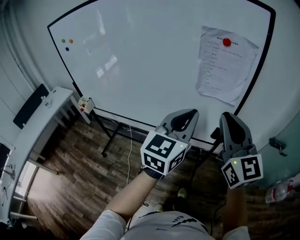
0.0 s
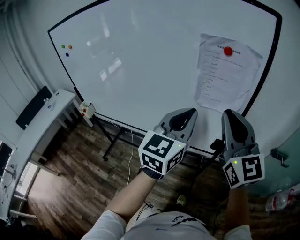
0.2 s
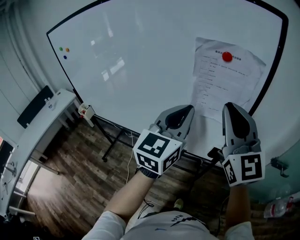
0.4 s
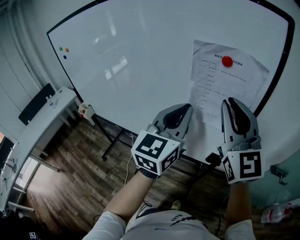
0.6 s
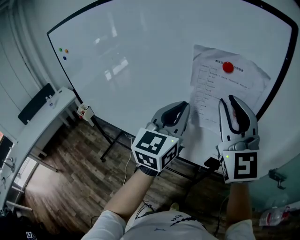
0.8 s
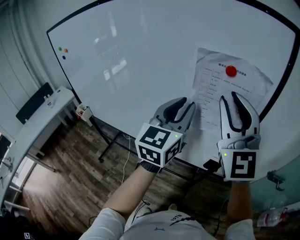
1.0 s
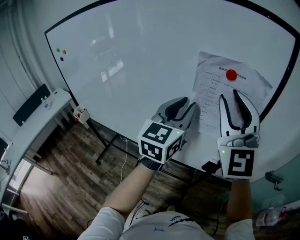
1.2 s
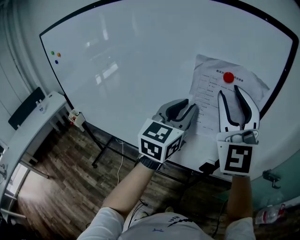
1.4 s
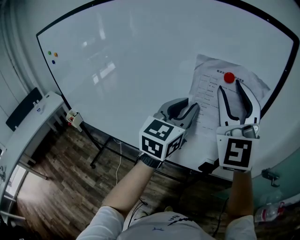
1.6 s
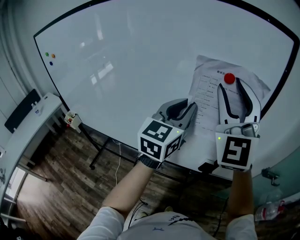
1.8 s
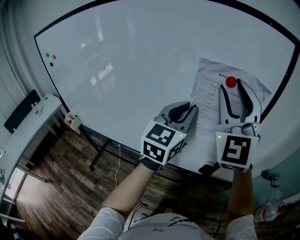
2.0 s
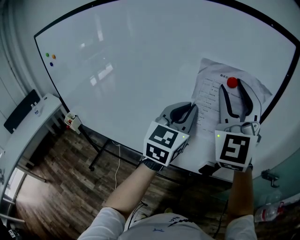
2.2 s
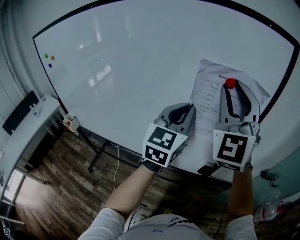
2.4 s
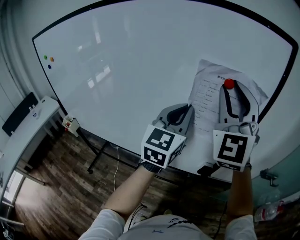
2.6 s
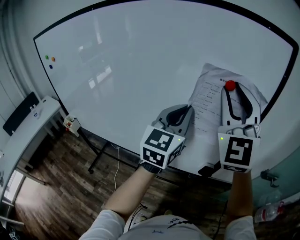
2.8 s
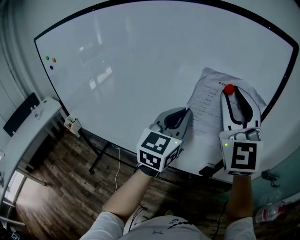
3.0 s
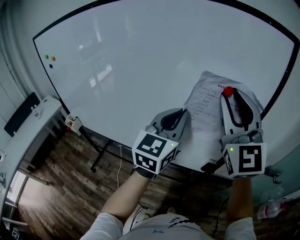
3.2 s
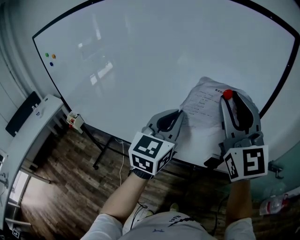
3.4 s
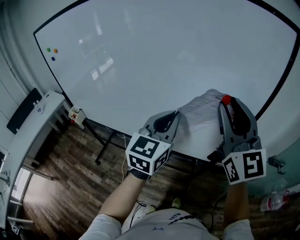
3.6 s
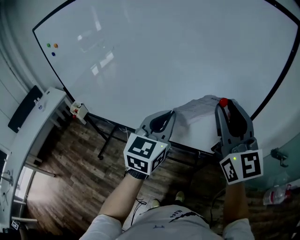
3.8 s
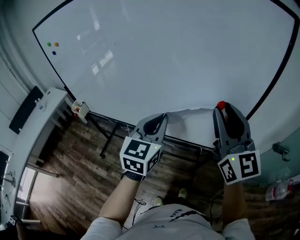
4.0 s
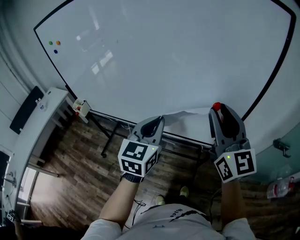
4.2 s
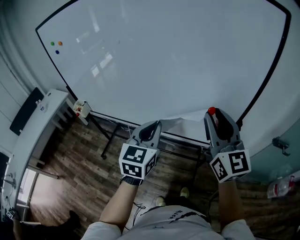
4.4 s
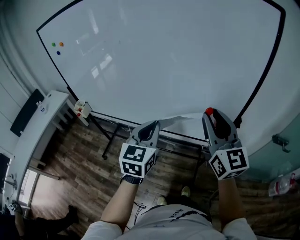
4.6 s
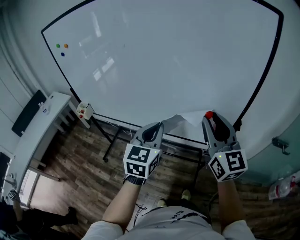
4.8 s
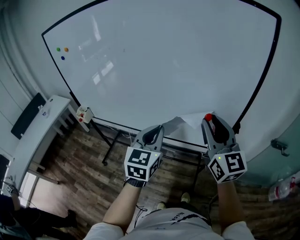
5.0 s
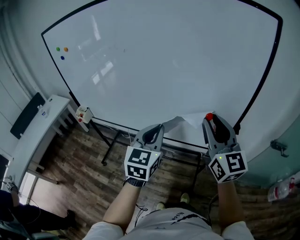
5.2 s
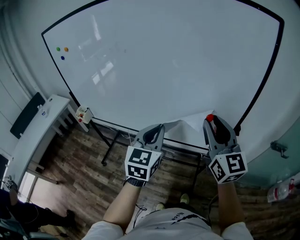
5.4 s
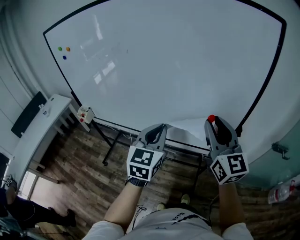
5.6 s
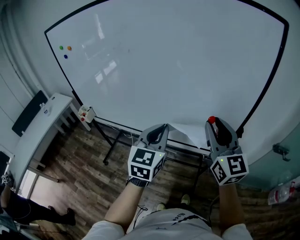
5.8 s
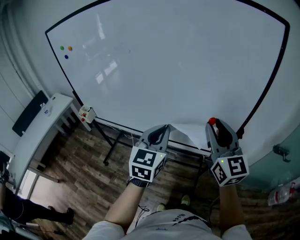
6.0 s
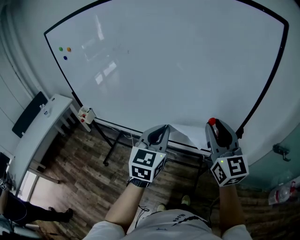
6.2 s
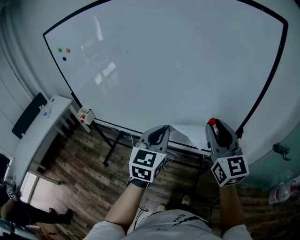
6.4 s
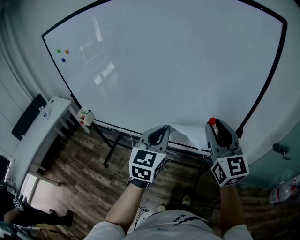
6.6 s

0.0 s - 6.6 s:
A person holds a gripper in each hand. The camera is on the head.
0.0 s - 1.6 s: The left gripper moves forward, approximately 20 cm, and opens its fingers. The right gripper is displaced forward and upward by about 20 cm, changes its angle by roughly 40 degrees, and opens.
1.6 s - 3.2 s: The left gripper shifts by about 5 cm, and closes.
3.2 s - 5.0 s: The left gripper moves to the left, backward and downward, some 20 cm. The right gripper goes about 15 cm downward and backward, and swivels roughly 30 degrees.
5.0 s - 6.6 s: The grippers stay close to where they were, moving slightly.

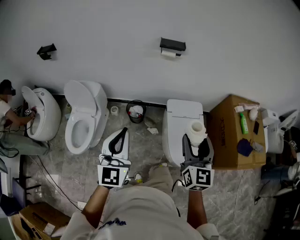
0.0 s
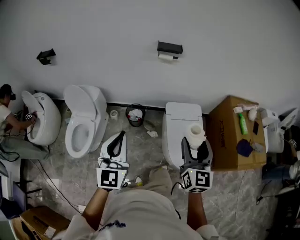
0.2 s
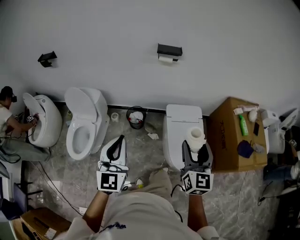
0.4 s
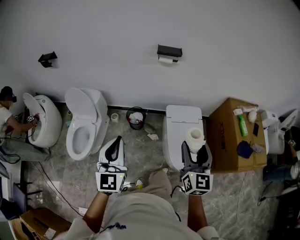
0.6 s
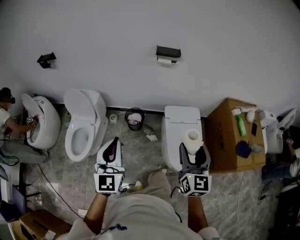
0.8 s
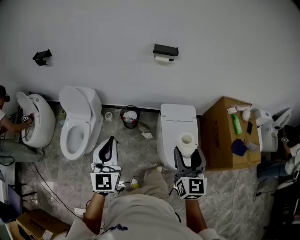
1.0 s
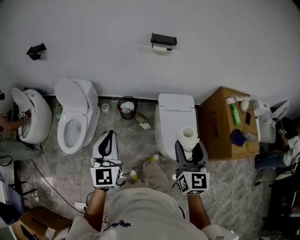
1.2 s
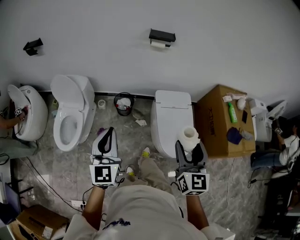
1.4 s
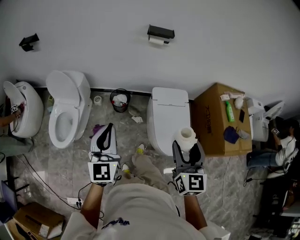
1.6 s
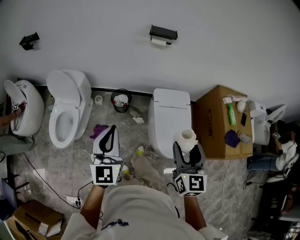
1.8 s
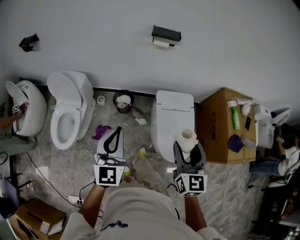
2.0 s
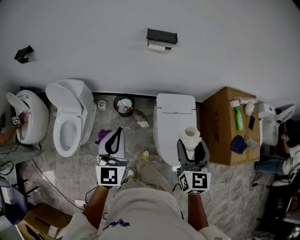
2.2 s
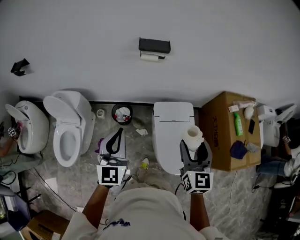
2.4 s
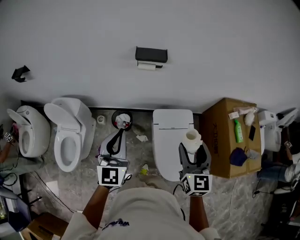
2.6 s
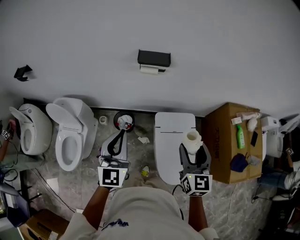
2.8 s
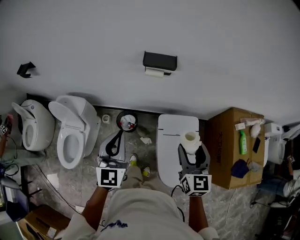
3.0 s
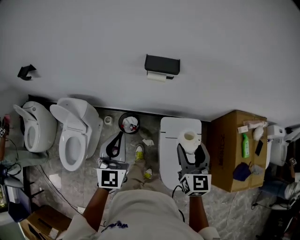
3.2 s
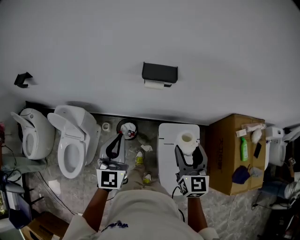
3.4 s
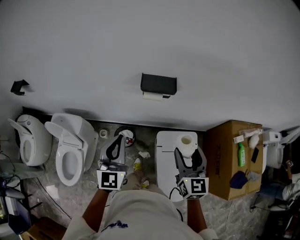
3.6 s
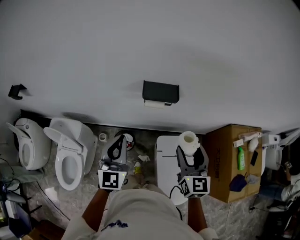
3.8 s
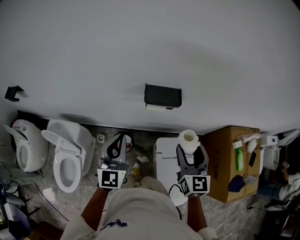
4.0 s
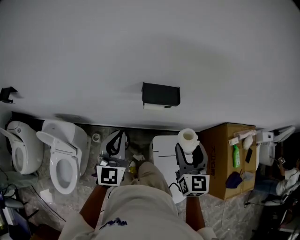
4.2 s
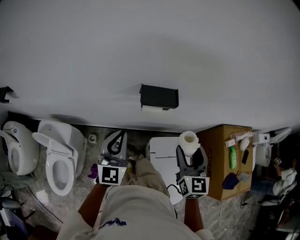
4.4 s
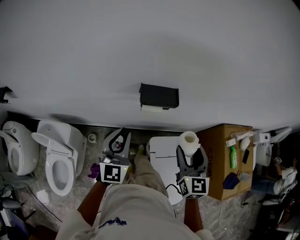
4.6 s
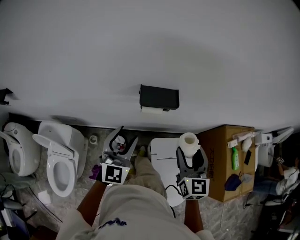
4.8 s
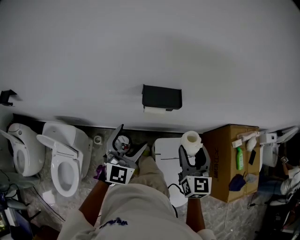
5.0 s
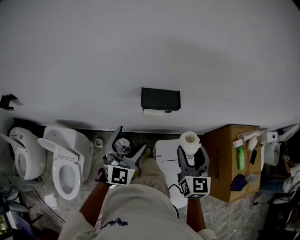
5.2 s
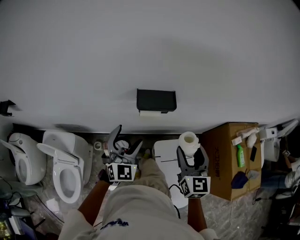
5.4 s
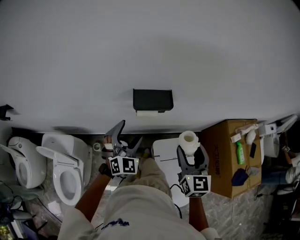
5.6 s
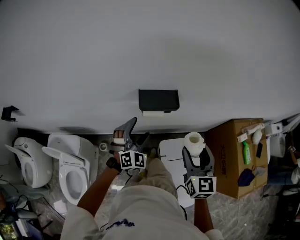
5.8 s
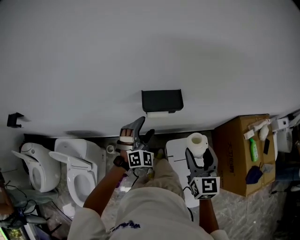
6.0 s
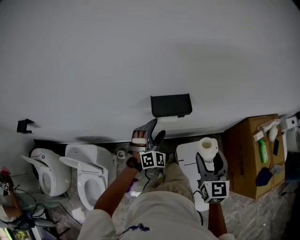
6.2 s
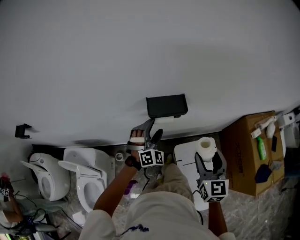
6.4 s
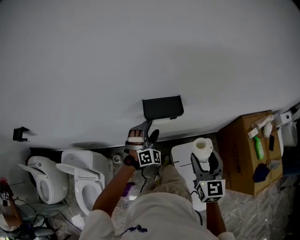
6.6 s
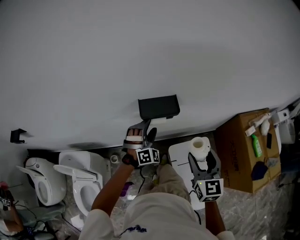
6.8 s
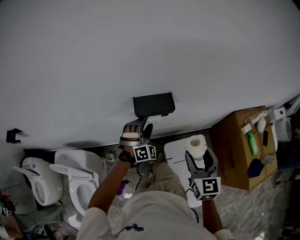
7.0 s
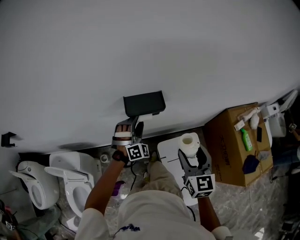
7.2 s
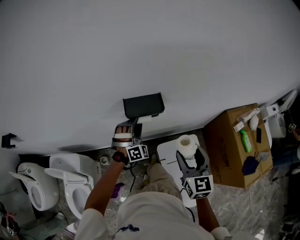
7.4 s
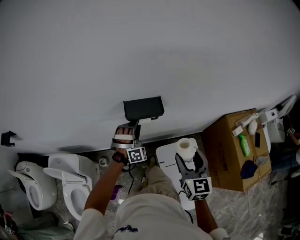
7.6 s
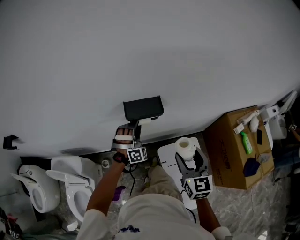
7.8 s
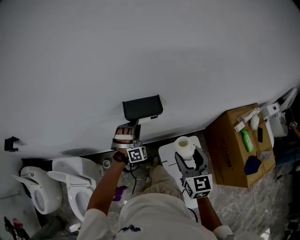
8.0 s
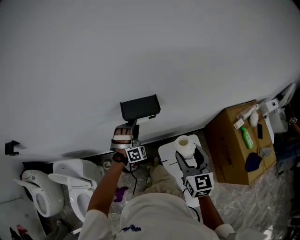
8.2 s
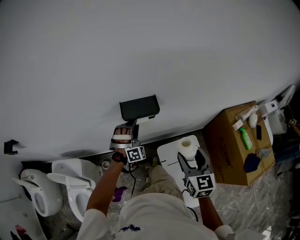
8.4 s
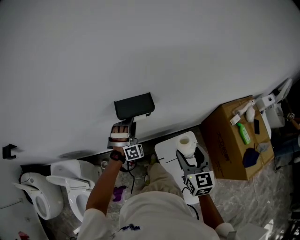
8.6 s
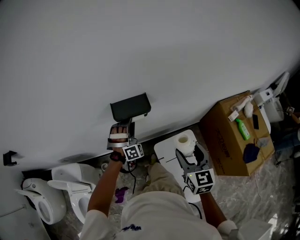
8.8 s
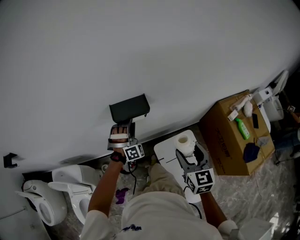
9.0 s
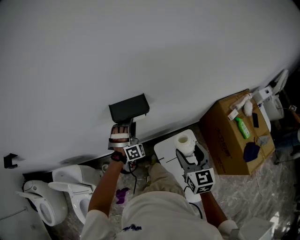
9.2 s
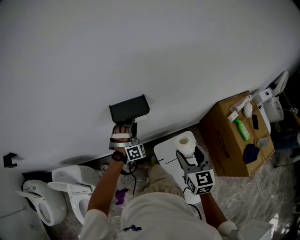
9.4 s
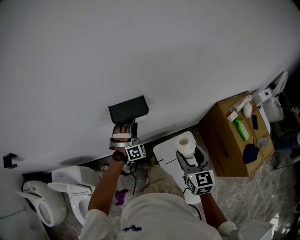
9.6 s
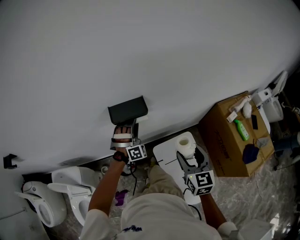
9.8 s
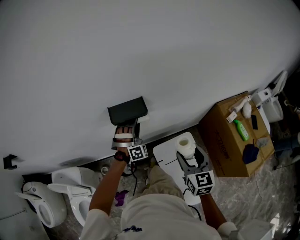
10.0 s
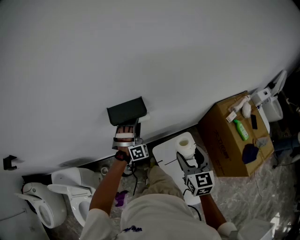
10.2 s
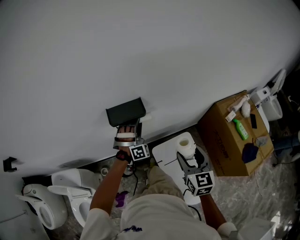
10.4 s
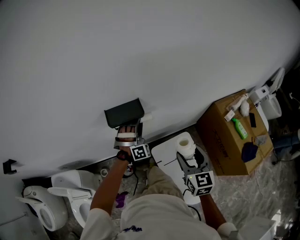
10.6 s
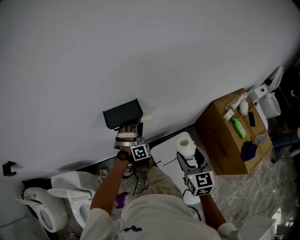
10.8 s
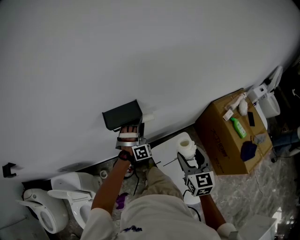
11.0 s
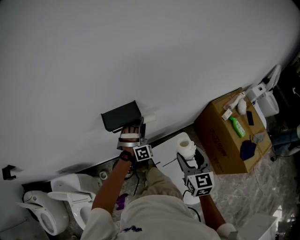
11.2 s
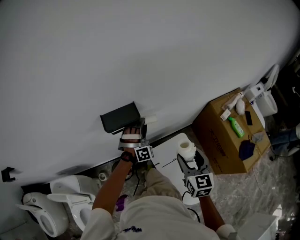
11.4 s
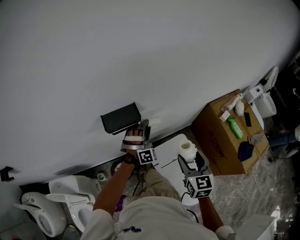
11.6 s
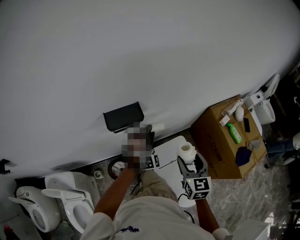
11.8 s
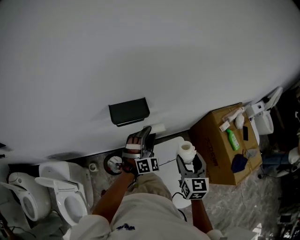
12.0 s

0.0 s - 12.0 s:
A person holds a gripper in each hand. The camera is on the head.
0.0 s - 1.6 s: The right gripper moves backward, approximately 5 cm; the left gripper goes about 5 cm downward.
1.6 s - 3.0 s: The two grippers go roughly 30 cm forward.
3.0 s - 4.4 s: The two grippers go approximately 20 cm forward.
4.4 s - 6.0 s: The left gripper is displaced downward, forward and to the right by approximately 15 cm, twists roughly 50 degrees clockwise, seen from behind, and opens up.
6.0 s - 7.6 s: The left gripper is displaced forward by approximately 5 cm, swivels some 30 degrees, and closes.
7.6 s - 9.0 s: The grippers stay close to where they were, moving slightly.
9.0 s - 10.4 s: The left gripper heads to the right, covering approximately 5 cm.
10.4 s - 12.0 s: The left gripper shifts roughly 10 cm backward and to the right, and changes its angle by roughly 30 degrees.

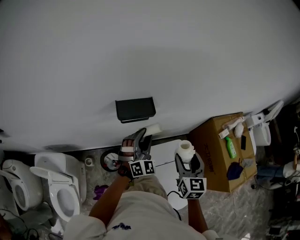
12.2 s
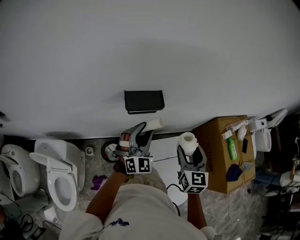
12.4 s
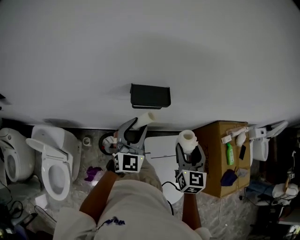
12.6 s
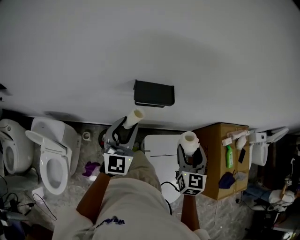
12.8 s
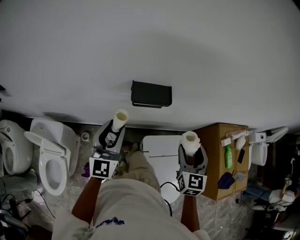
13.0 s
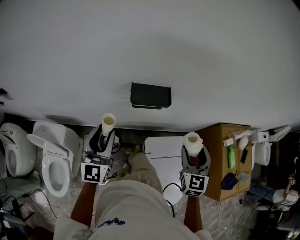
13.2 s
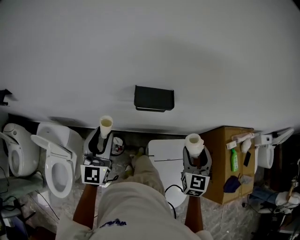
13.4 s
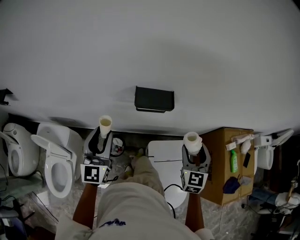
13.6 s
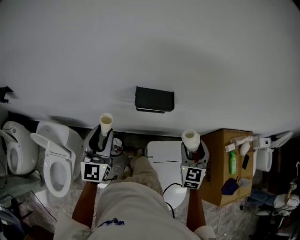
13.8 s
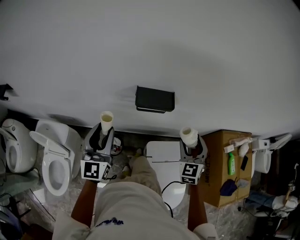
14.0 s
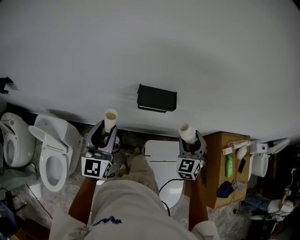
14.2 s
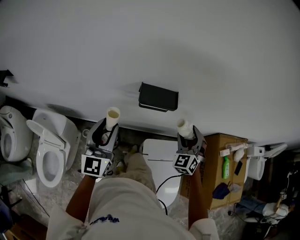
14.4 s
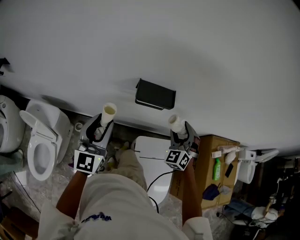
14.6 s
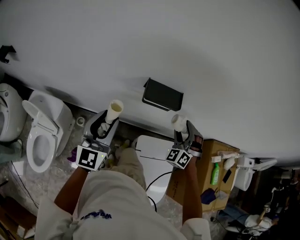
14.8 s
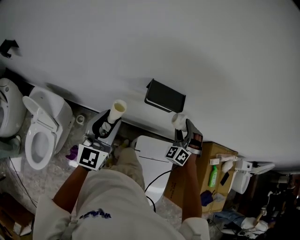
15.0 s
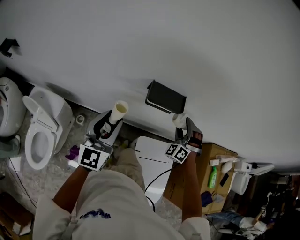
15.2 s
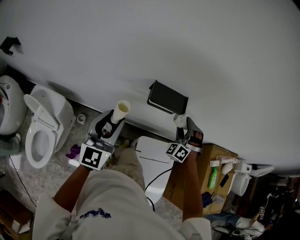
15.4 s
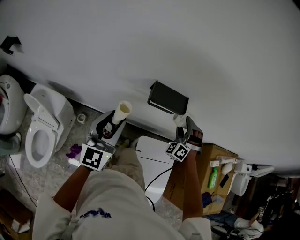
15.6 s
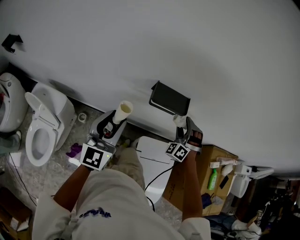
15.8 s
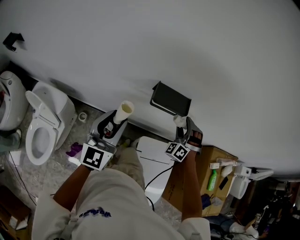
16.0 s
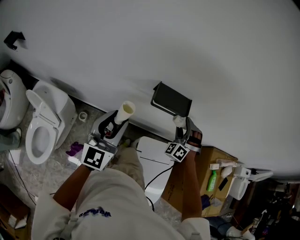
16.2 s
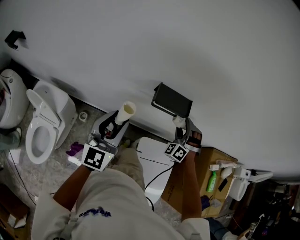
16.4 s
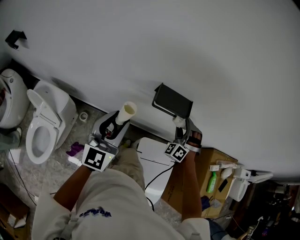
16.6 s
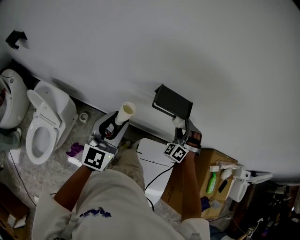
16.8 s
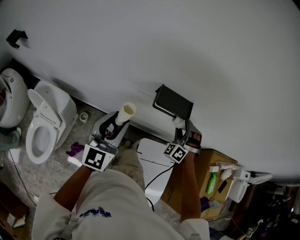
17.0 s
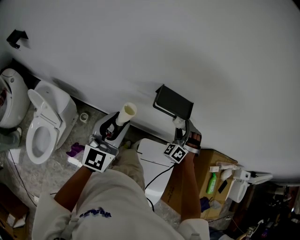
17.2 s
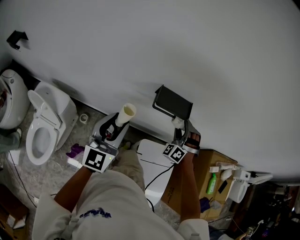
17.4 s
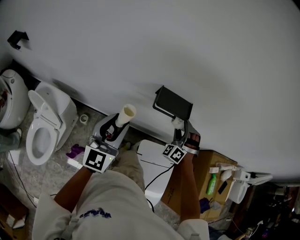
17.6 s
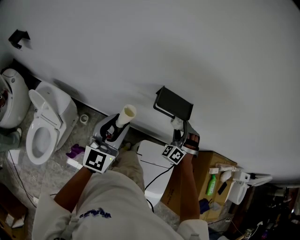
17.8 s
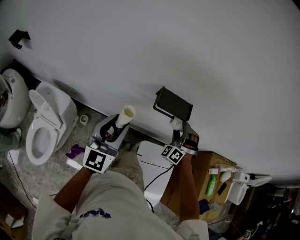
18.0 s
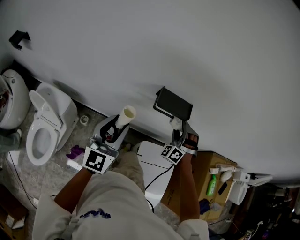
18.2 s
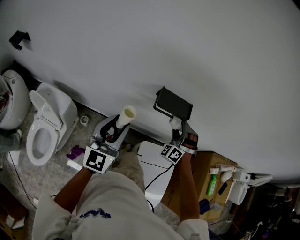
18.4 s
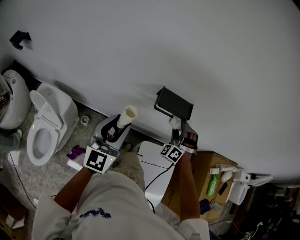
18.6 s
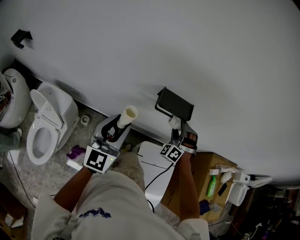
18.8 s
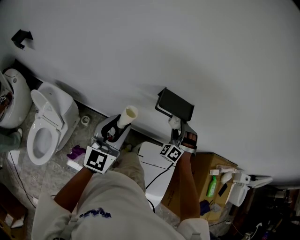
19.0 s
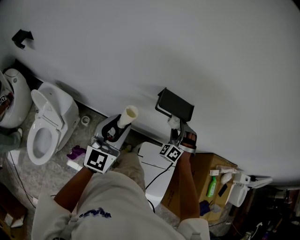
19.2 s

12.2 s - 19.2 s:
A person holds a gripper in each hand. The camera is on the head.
12.2 s - 13.6 s: The left gripper travels to the left and backward by roughly 25 cm, and rolls counterclockwise, seen from behind, by some 40 degrees.
13.6 s - 15.0 s: The right gripper moves forward, downward and to the left, approximately 15 cm, and rolls counterclockwise, seen from behind, by approximately 60 degrees.
15.0 s - 17.8 s: The grippers stay close to where they were, moving slightly.
17.8 s - 19.2 s: The grippers make only small movements.
